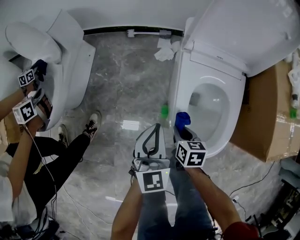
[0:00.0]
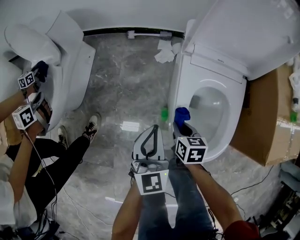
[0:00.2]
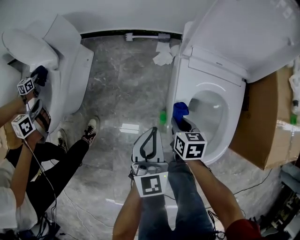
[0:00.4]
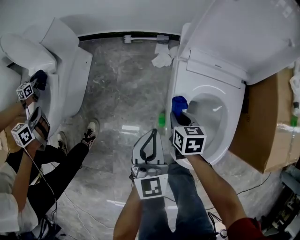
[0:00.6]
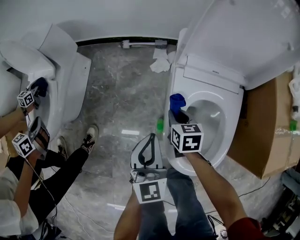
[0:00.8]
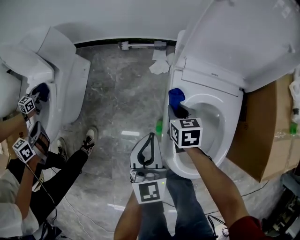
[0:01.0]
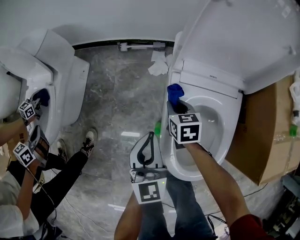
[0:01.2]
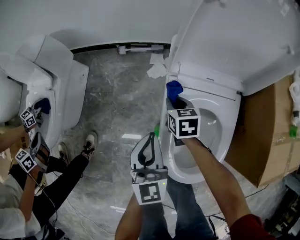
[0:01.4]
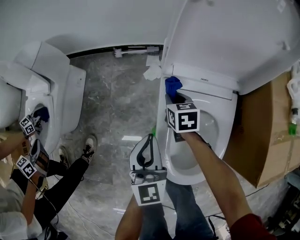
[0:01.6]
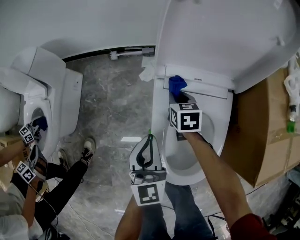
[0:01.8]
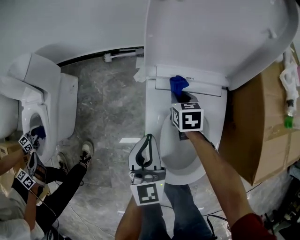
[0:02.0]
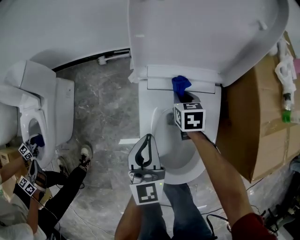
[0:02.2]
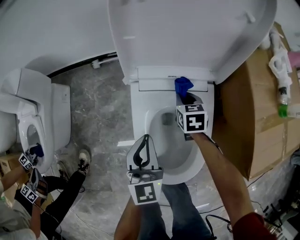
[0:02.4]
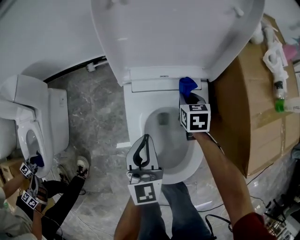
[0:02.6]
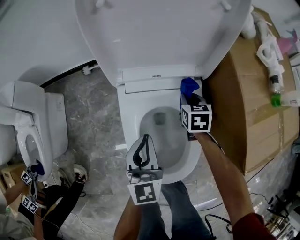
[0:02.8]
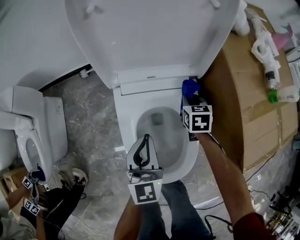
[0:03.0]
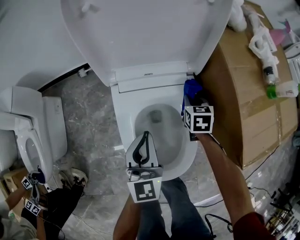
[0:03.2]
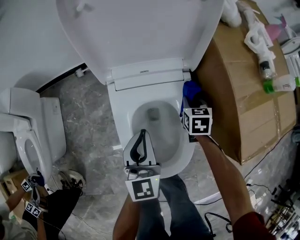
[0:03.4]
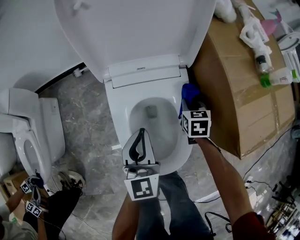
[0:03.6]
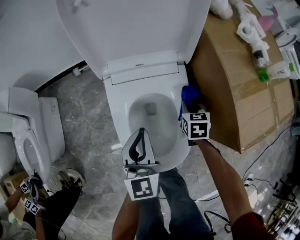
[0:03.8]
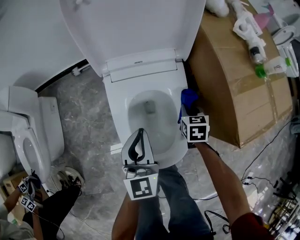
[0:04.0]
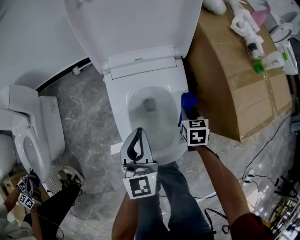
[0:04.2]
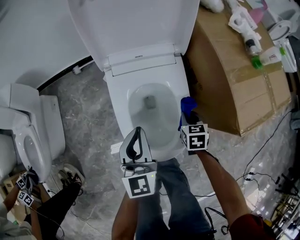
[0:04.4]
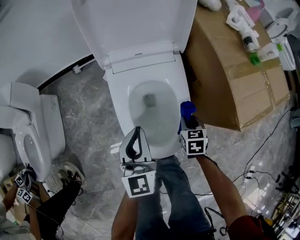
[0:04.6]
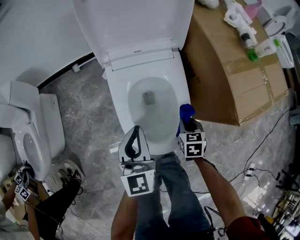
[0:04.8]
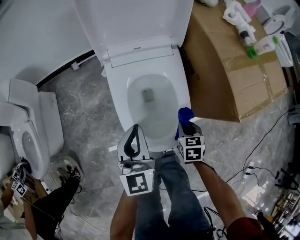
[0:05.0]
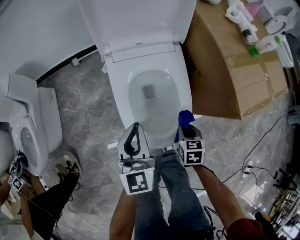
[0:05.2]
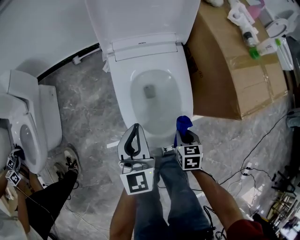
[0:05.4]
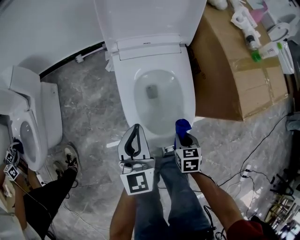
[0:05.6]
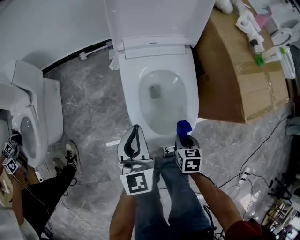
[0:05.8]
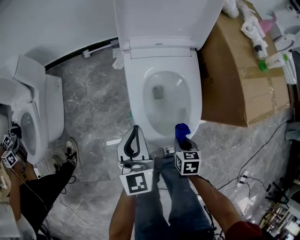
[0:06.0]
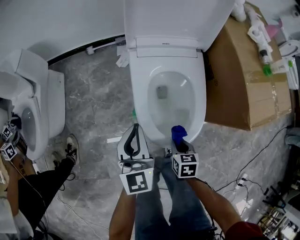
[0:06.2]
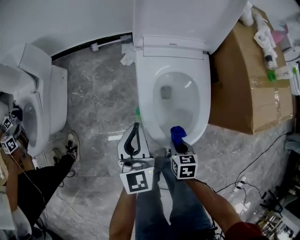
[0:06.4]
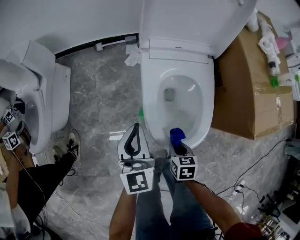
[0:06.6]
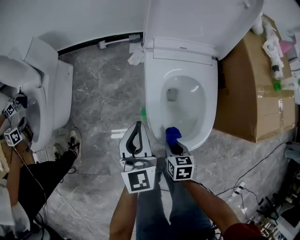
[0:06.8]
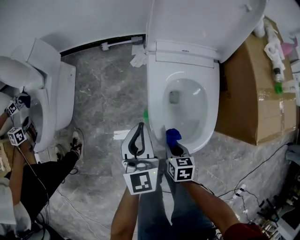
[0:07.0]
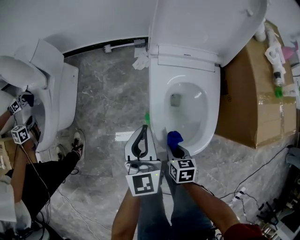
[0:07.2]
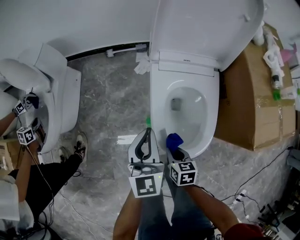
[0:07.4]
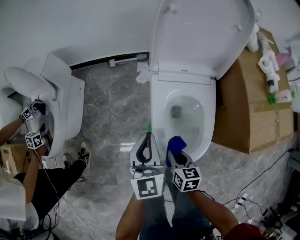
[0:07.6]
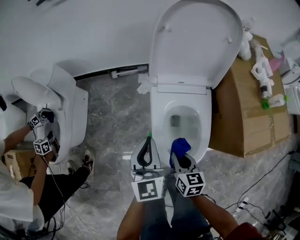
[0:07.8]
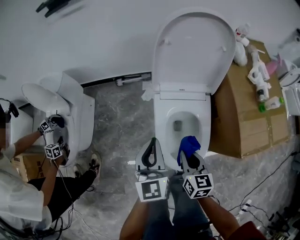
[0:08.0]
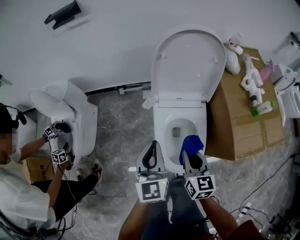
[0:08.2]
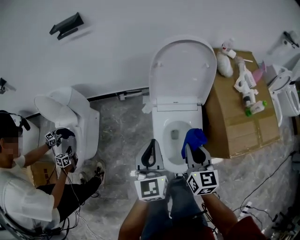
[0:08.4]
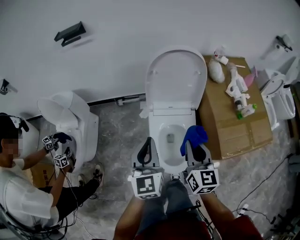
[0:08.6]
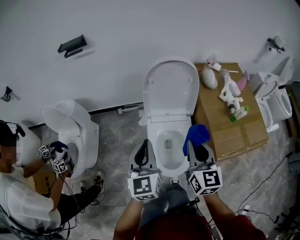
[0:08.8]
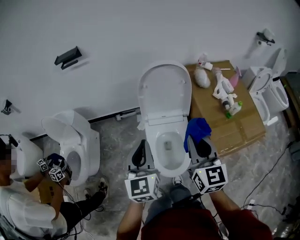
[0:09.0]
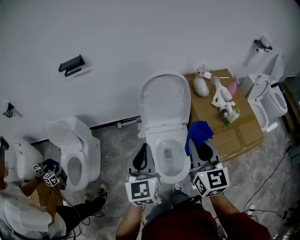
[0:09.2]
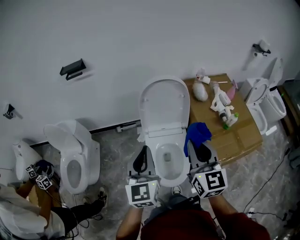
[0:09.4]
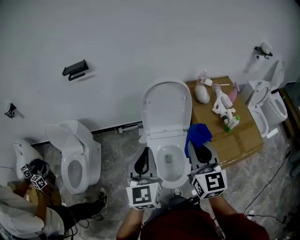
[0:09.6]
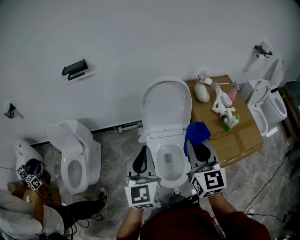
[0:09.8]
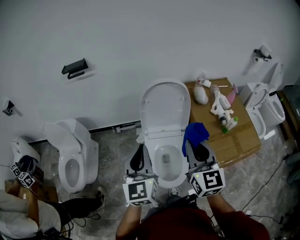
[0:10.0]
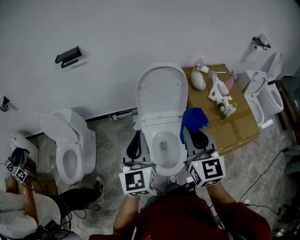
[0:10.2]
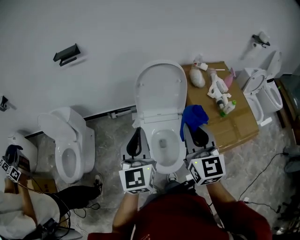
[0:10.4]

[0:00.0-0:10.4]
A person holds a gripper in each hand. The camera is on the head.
0.0 to 1.4 s: The right gripper moves forward, roughly 25 cm, while the left gripper goes some 10 cm forward and to the right.
1.4 to 3.0 s: The left gripper travels to the right by approximately 20 cm. Meanwhile the right gripper shifts approximately 30 cm to the right, and turns by some 20 degrees.
3.0 to 4.4 s: The left gripper heads backward, covering some 10 cm, while the right gripper moves backward, about 20 cm.
4.4 to 6.0 s: The left gripper travels to the left and backward by some 10 cm, while the right gripper travels backward and to the left by about 20 cm.
6.0 to 7.4 s: The left gripper shifts by about 5 cm. The right gripper heads to the left and forward, covering roughly 15 cm.
7.4 to 9.0 s: The two grippers go approximately 50 cm upward. The right gripper points its fingers some 40 degrees further upward.
9.0 to 10.4 s: The right gripper travels upward by about 5 cm, while the left gripper moves about 5 cm.

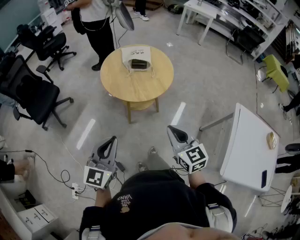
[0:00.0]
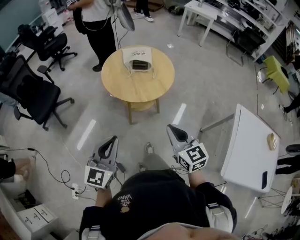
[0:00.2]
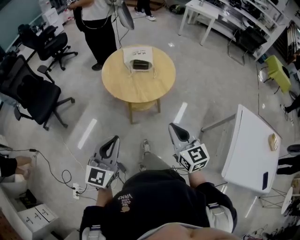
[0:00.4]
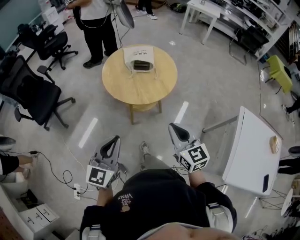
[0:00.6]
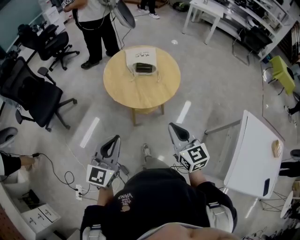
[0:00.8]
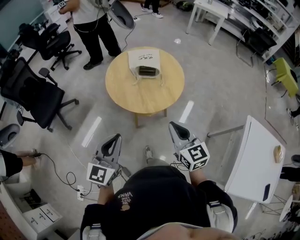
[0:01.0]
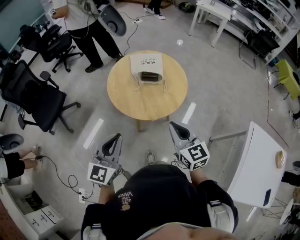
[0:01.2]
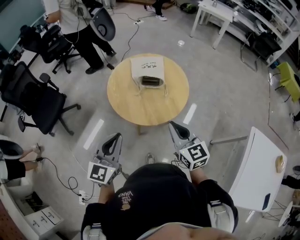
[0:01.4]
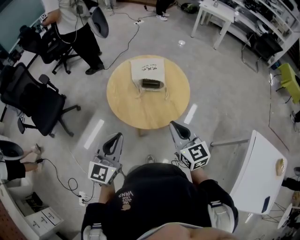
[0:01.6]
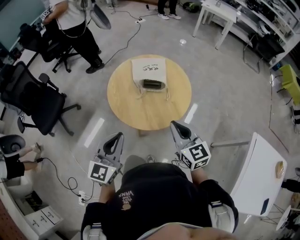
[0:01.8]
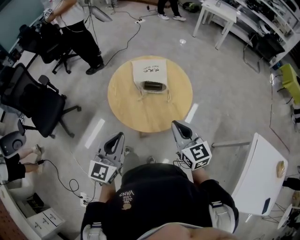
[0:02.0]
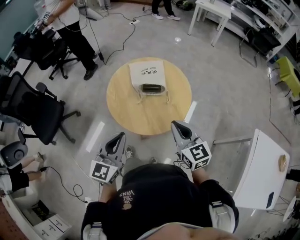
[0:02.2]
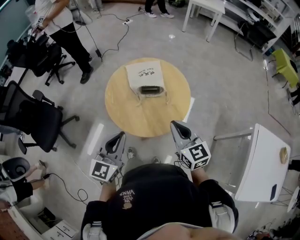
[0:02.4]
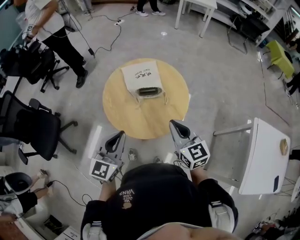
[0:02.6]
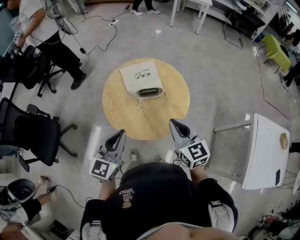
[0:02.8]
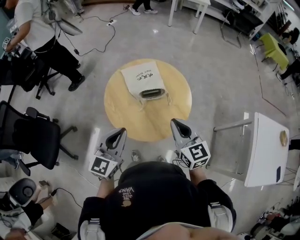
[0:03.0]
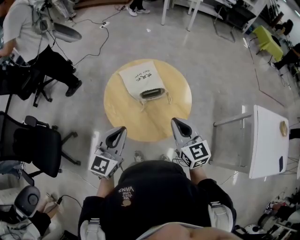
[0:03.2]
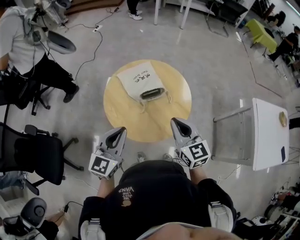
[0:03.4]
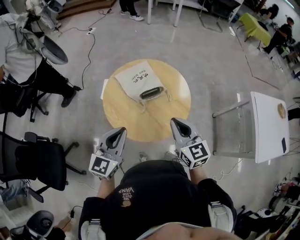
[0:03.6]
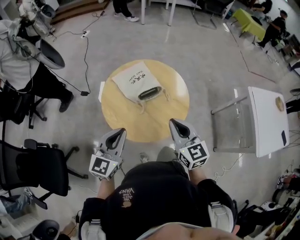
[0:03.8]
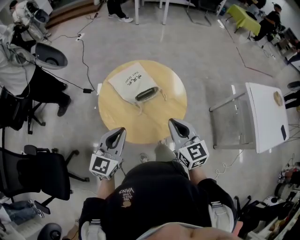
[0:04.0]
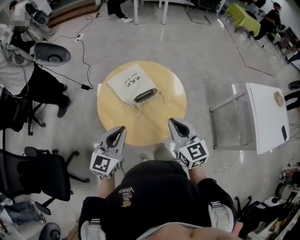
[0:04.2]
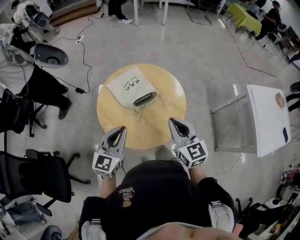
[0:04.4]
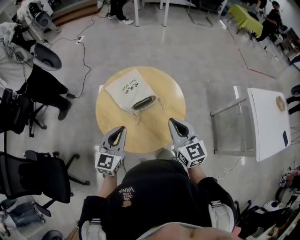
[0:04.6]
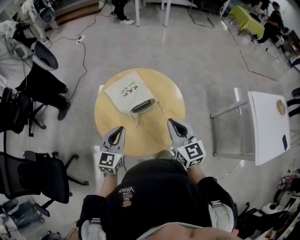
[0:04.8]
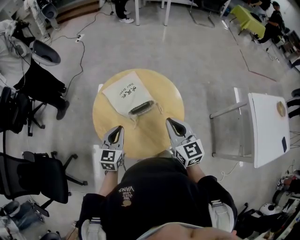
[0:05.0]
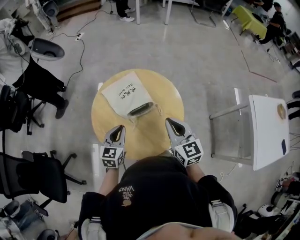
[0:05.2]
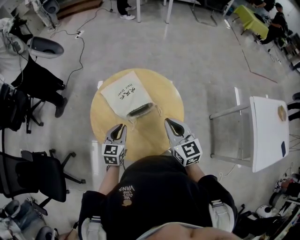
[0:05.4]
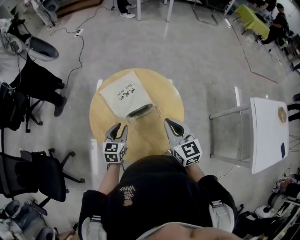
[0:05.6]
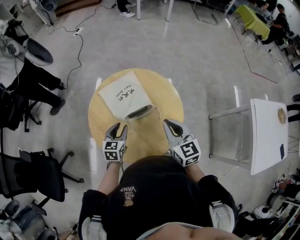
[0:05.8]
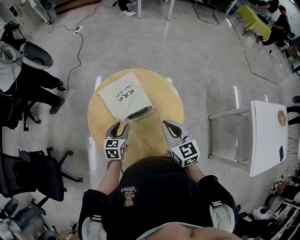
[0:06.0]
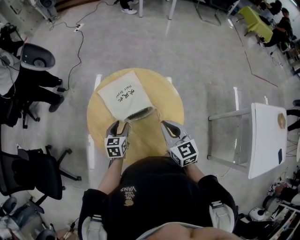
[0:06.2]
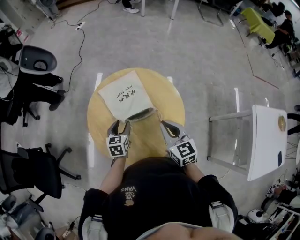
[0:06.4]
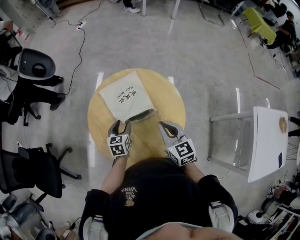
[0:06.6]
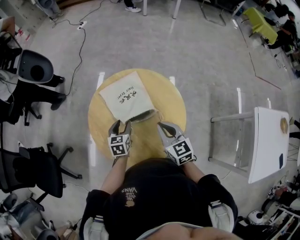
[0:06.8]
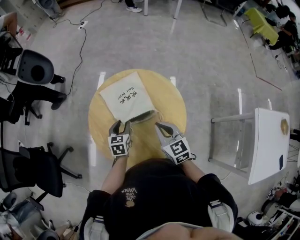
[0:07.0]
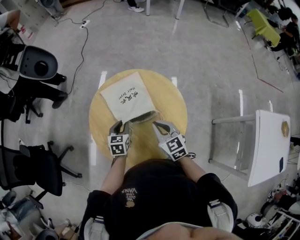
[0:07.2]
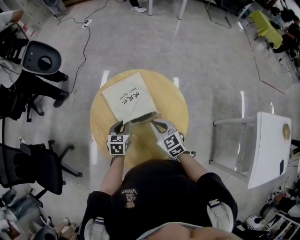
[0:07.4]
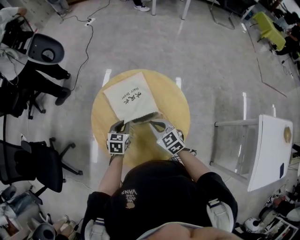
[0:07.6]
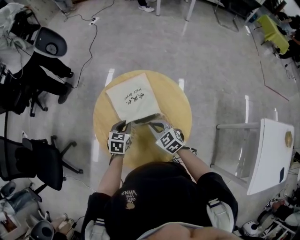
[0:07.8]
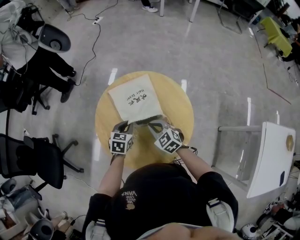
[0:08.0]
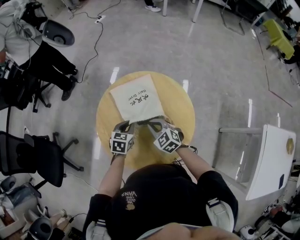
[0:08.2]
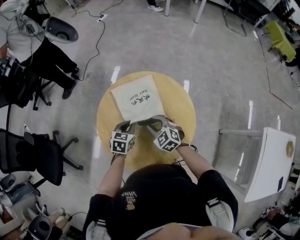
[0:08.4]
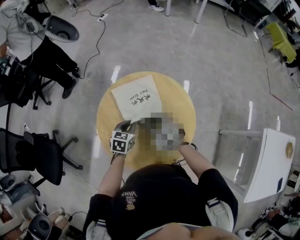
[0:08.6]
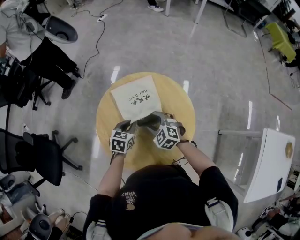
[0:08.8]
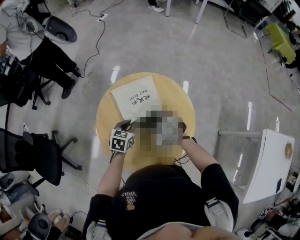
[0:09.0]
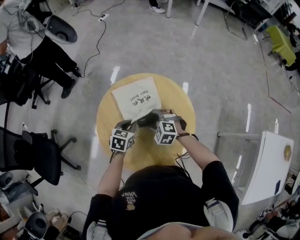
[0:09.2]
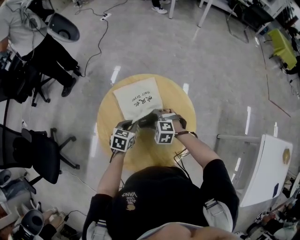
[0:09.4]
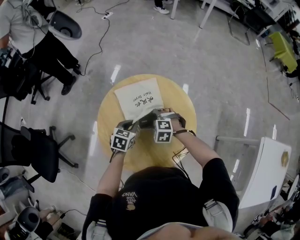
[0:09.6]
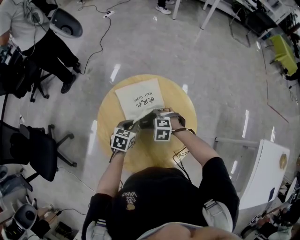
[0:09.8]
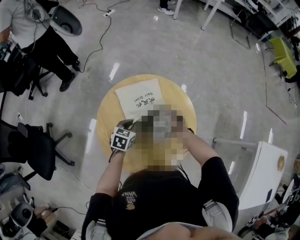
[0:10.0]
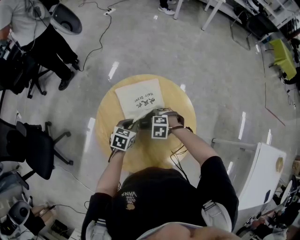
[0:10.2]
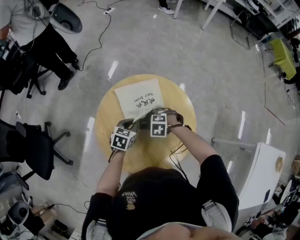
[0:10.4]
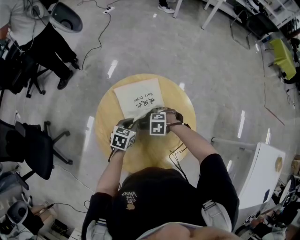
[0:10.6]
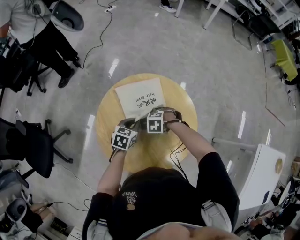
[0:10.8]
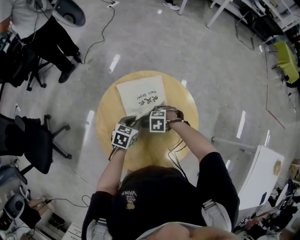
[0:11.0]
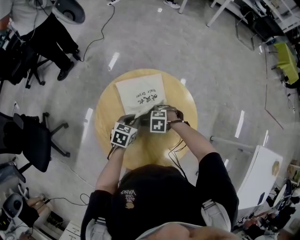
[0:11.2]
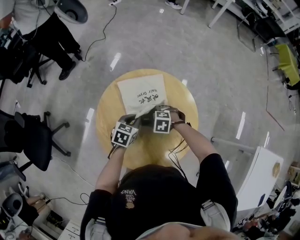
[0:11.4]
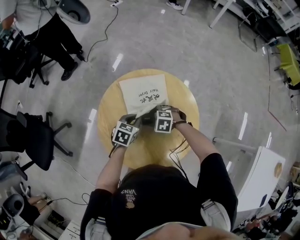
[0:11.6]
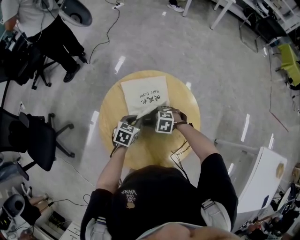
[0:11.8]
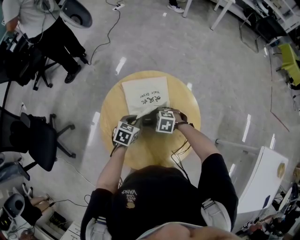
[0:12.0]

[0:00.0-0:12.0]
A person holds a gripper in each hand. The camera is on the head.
0.0 to 1.6 s: Both grippers travel together forward, approximately 25 cm.
1.6 to 3.0 s: The grippers both shift forward and to the left by about 15 cm. The left gripper turns by approximately 20 degrees.
3.0 to 4.4 s: The left gripper is displaced forward by some 10 cm.
4.4 to 6.0 s: The left gripper heads downward and forward, covering roughly 25 cm, swivels some 30 degrees, and opens its fingers. The right gripper shifts some 15 cm forward and downward.
6.0 to 7.6 s: The right gripper shifts about 15 cm downward, to the left and forward, and turns by roughly 30 degrees; the left gripper closes up.
7.6 to 9.0 s: The right gripper ends up some 5 cm from where it was, rotates some 40 degrees, and opens up.
9.0 to 10.4 s: The right gripper shifts some 5 cm downward, and turns by some 30 degrees.
10.4 to 12.0 s: There are only small adjustments of the grippers.

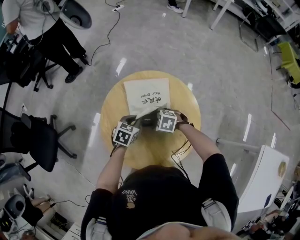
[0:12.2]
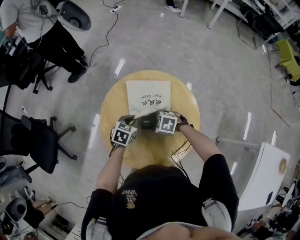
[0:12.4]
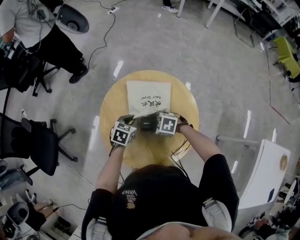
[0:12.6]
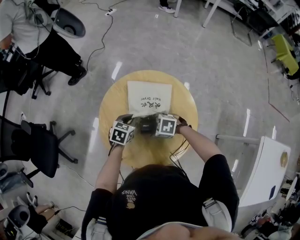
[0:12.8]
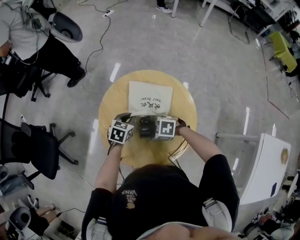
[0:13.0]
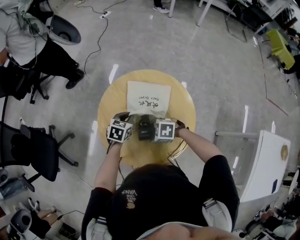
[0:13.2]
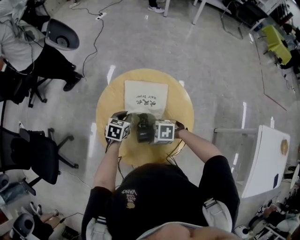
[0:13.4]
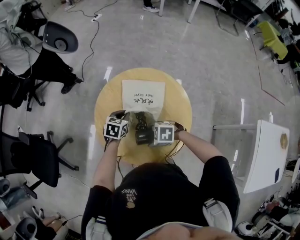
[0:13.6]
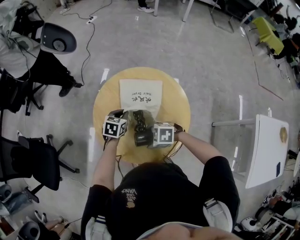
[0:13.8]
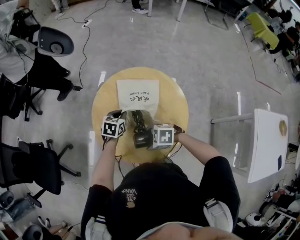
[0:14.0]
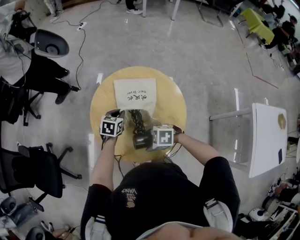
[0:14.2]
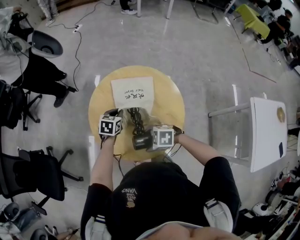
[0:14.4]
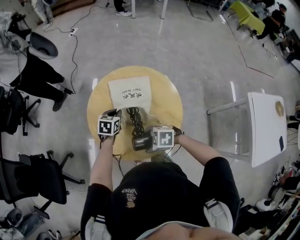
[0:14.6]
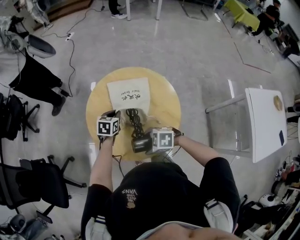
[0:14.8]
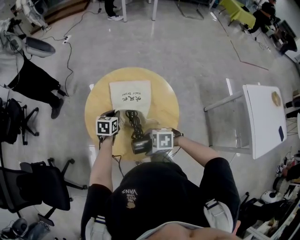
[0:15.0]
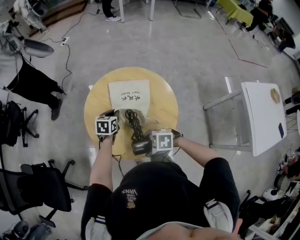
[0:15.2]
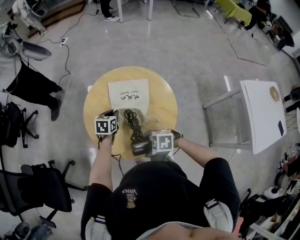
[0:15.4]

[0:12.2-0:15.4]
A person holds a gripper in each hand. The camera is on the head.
12.2 to 13.8 s: The right gripper shifts by roughly 15 cm.
13.8 to 15.4 s: The right gripper shifts by some 10 cm.
